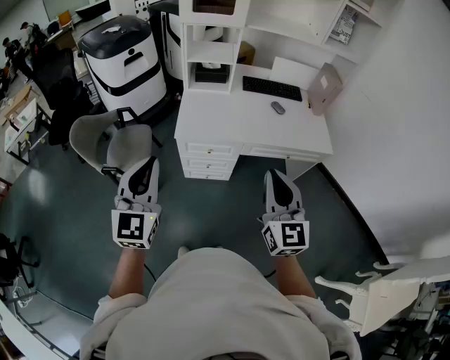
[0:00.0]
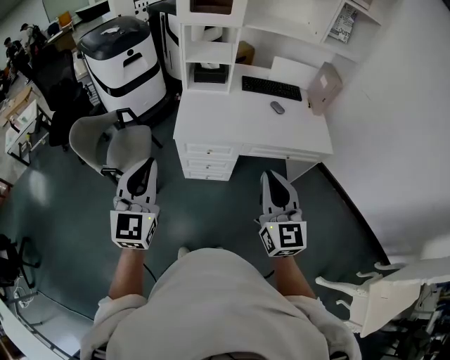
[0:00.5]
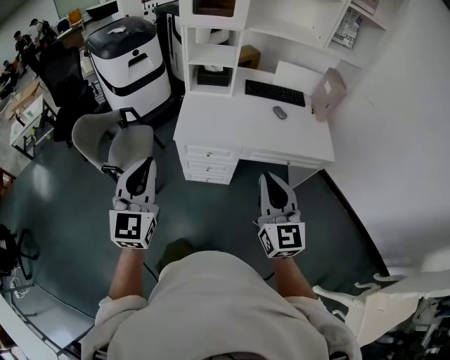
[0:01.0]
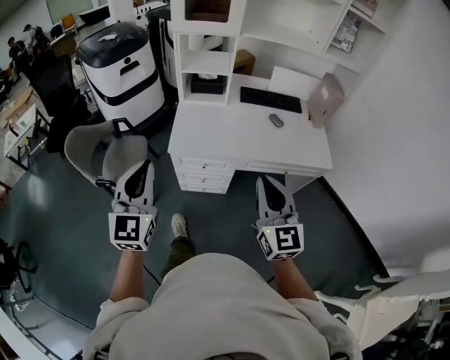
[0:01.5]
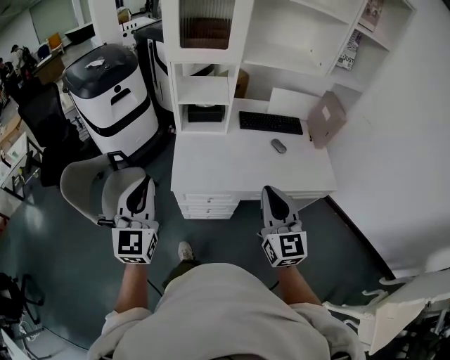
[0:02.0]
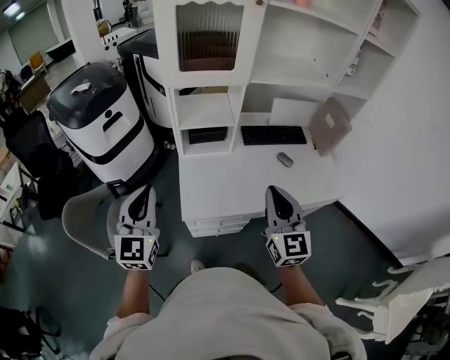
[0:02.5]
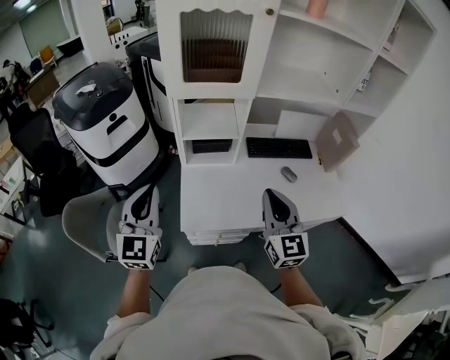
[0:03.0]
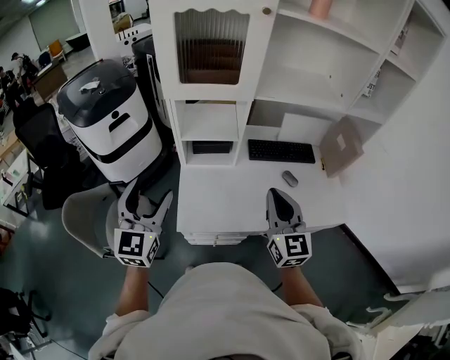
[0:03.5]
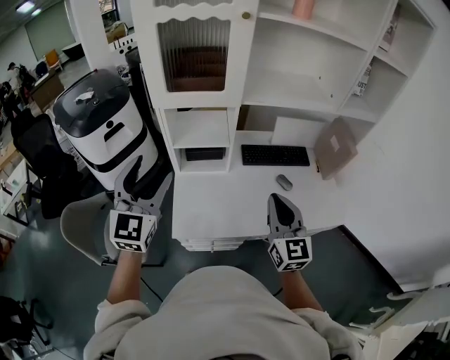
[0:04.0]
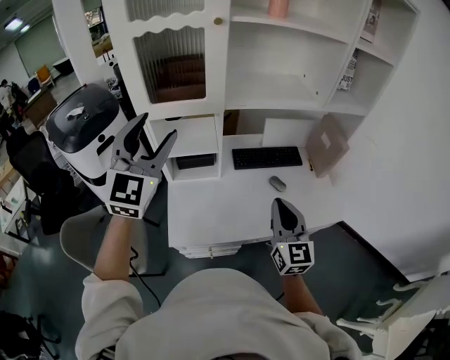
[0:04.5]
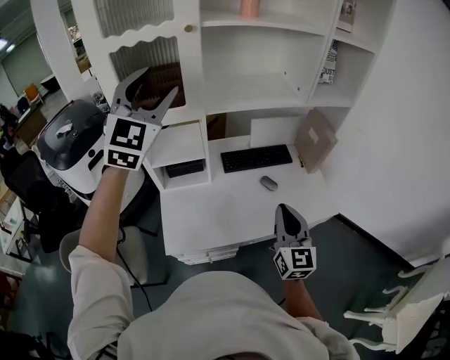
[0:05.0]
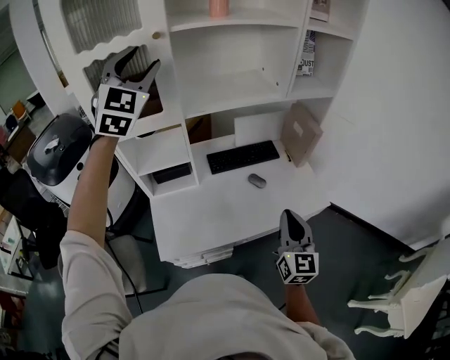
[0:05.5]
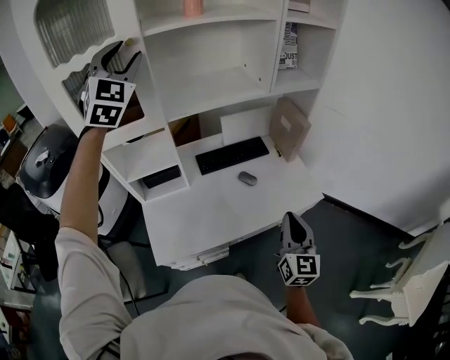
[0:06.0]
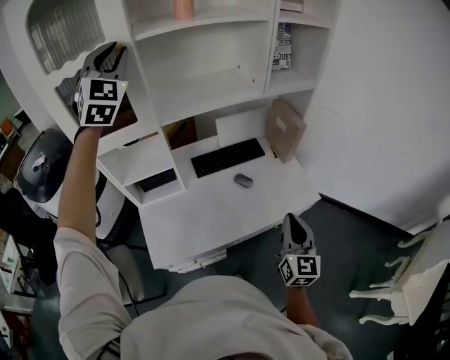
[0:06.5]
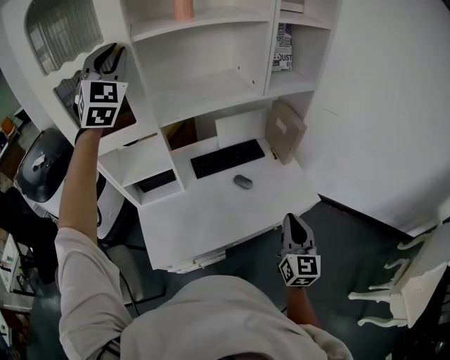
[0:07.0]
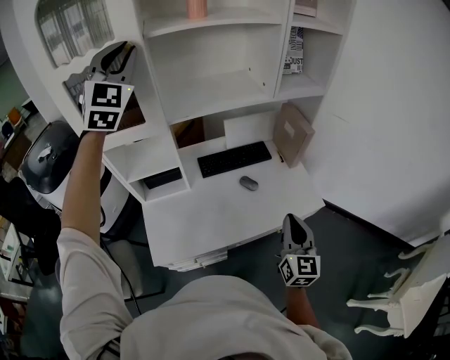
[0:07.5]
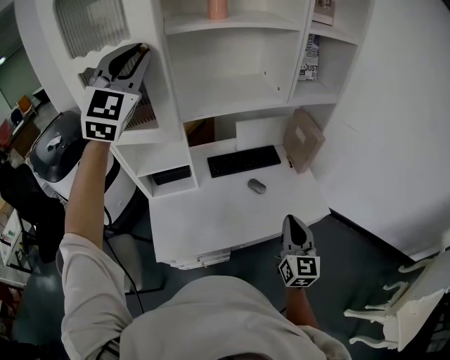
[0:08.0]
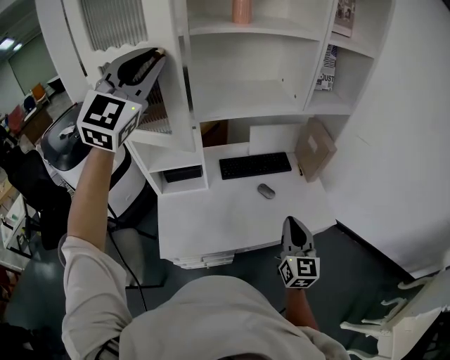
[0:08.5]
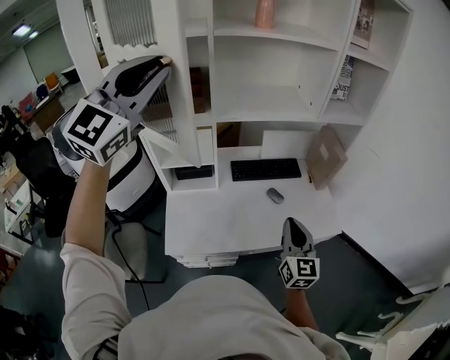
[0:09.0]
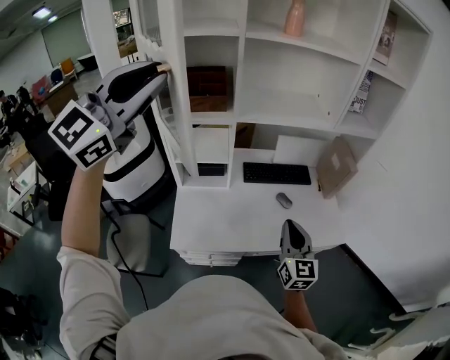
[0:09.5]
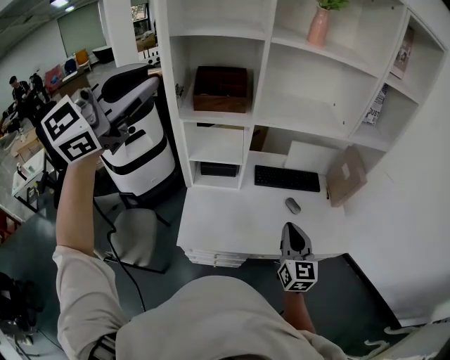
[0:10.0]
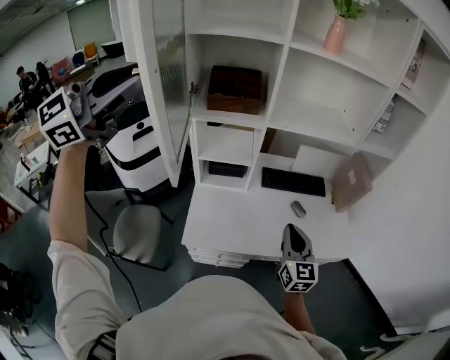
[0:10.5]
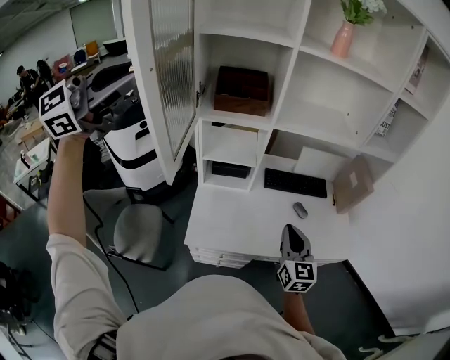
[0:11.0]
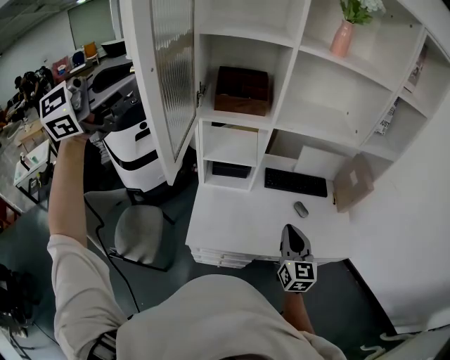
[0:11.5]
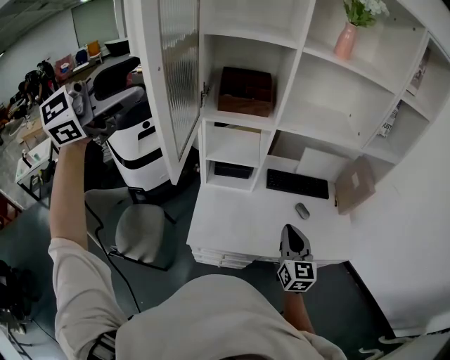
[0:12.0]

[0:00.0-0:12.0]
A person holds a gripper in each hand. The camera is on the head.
0.0 to 2.0 s: Both grippers travel together forward, some 20 cm.
2.0 to 4.0 s: Both grippers move forward, some 20 cm. The left gripper opens its fingers.
4.0 to 6.0 s: The left gripper shifts approximately 40 cm forward, upward and to the right, swivels roughly 30 degrees, and closes its fingers, while the right gripper heads to the right, covering some 20 cm, and turns by approximately 30 degrees.
6.0 to 8.0 s: The left gripper goes about 5 cm backward, and closes.
8.0 to 10.0 s: The left gripper travels backward and to the left by roughly 25 cm, and changes its angle by some 30 degrees, while the right gripper shifts approximately 15 cm to the left.
10.0 to 12.0 s: The right gripper heads to the left, covering some 5 cm. The left gripper shifts some 10 cm to the left and backward, and opens up.

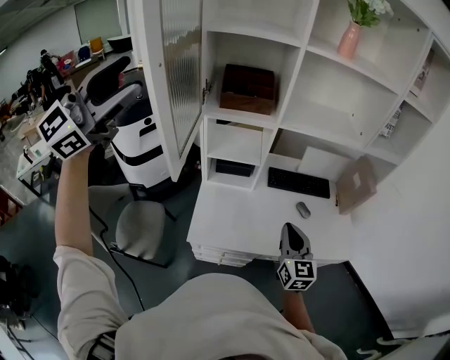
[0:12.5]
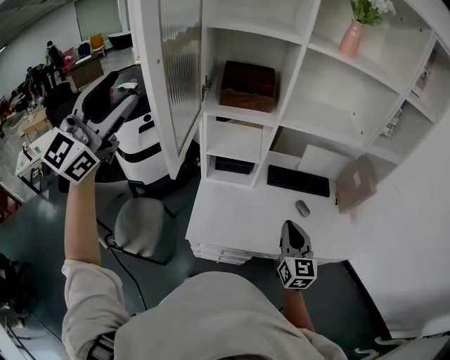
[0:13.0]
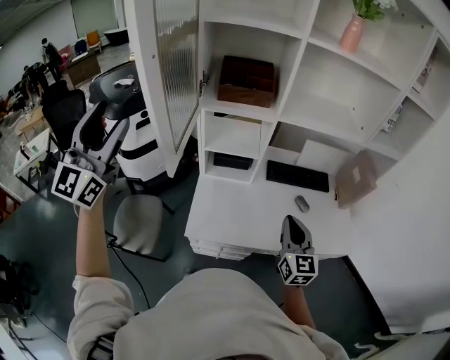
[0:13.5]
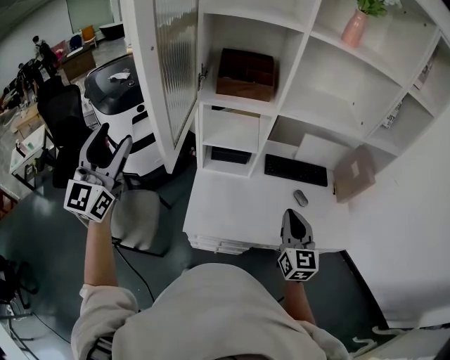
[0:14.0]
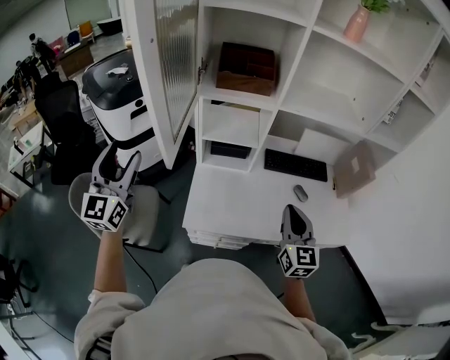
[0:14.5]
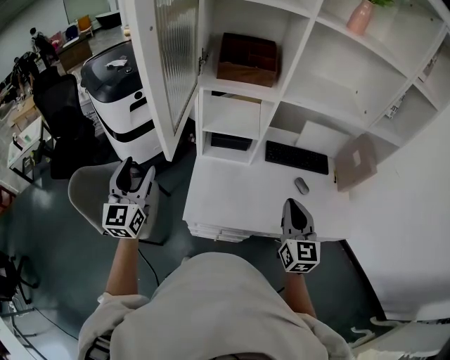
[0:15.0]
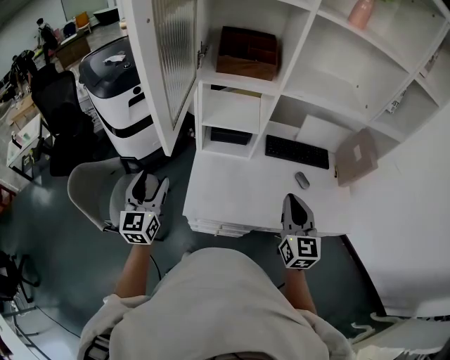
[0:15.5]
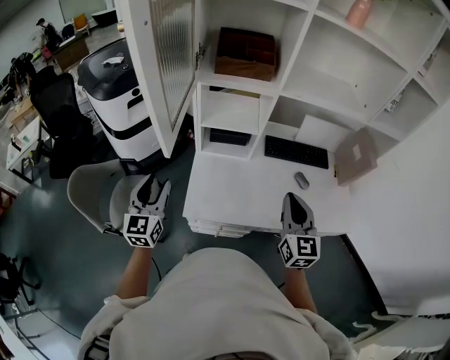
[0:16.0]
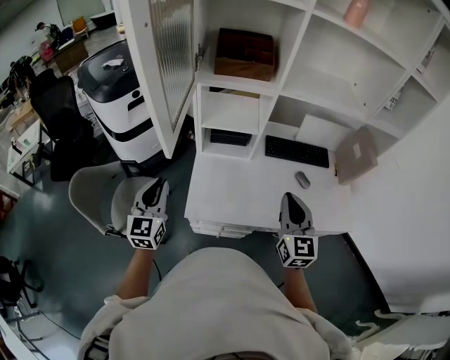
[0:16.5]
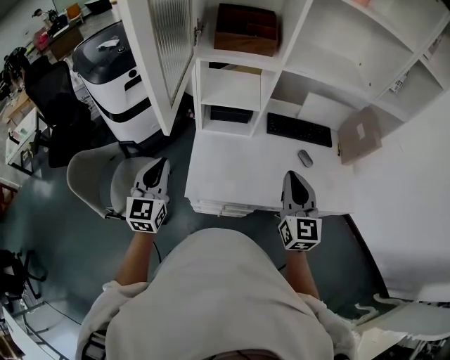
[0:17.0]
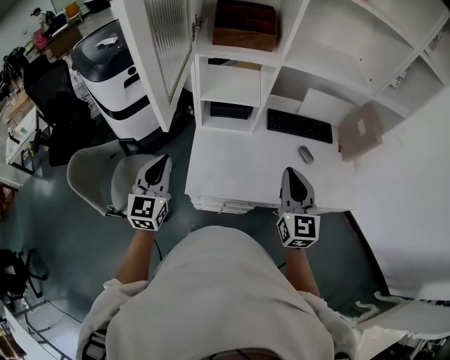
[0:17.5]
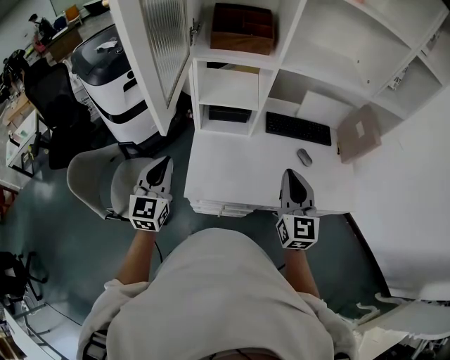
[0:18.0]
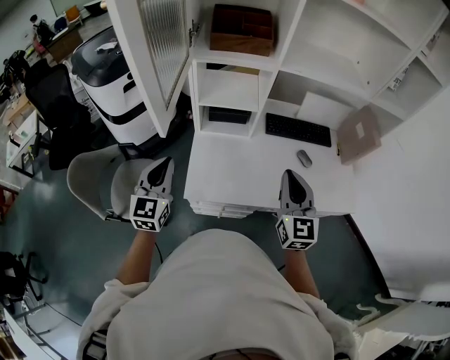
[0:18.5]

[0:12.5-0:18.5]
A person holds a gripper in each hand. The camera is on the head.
12.5 to 14.5 s: The left gripper shifts approximately 25 cm downward, and changes its angle by about 40 degrees.
14.5 to 16.5 s: The left gripper heads downward and to the right, covering roughly 20 cm, and closes.
16.5 to 18.5 s: The grippers stay close to where they were, moving slightly.

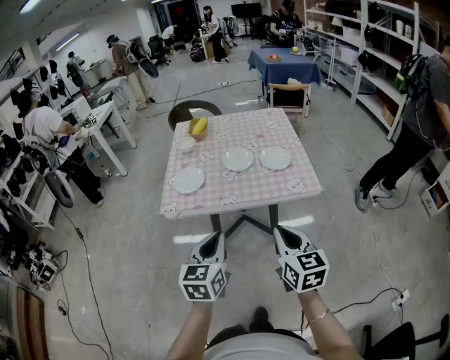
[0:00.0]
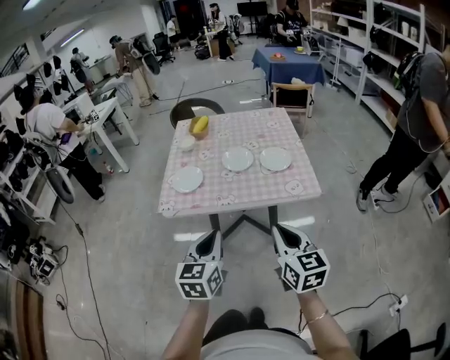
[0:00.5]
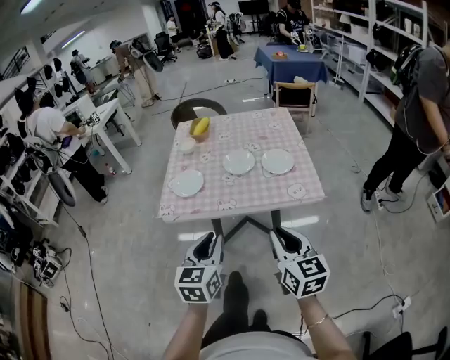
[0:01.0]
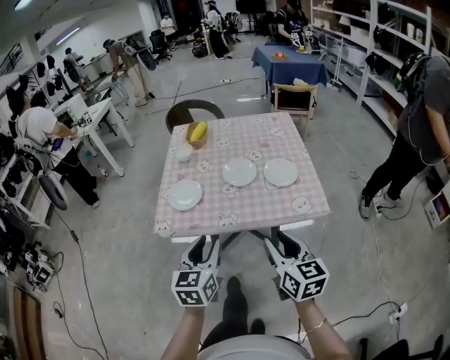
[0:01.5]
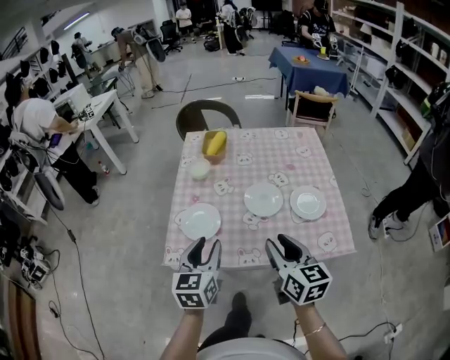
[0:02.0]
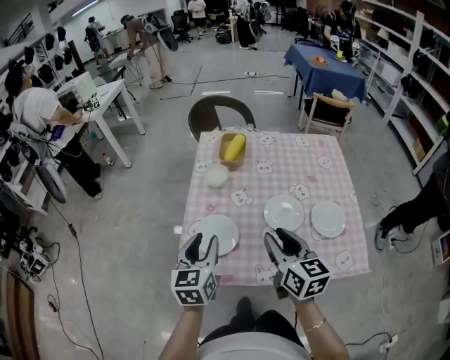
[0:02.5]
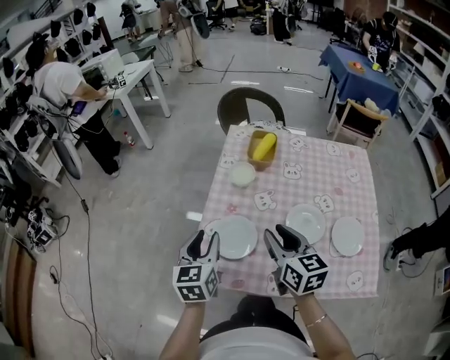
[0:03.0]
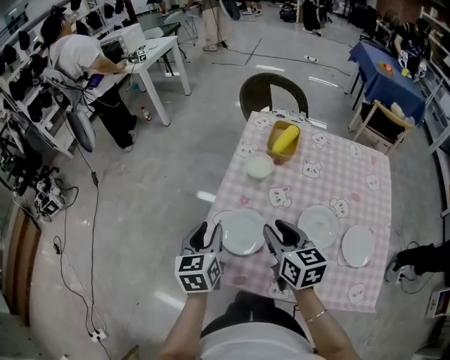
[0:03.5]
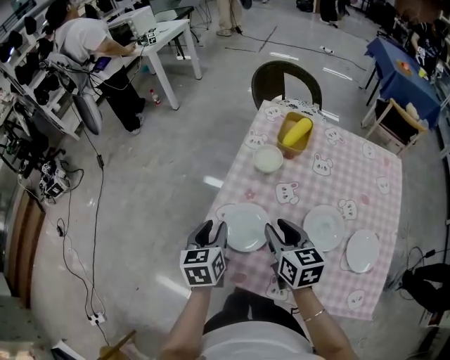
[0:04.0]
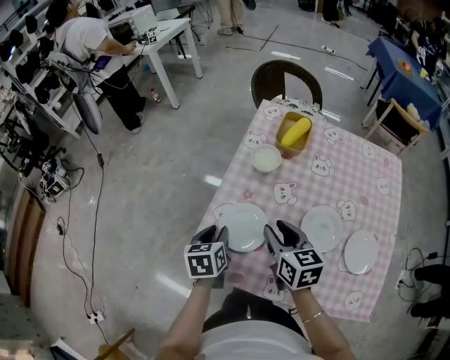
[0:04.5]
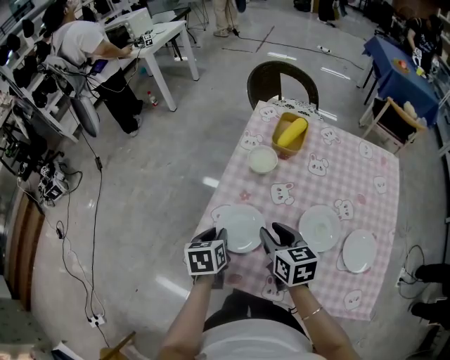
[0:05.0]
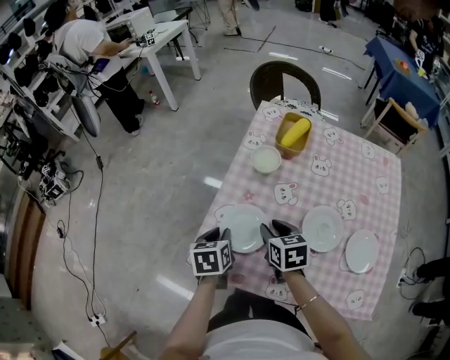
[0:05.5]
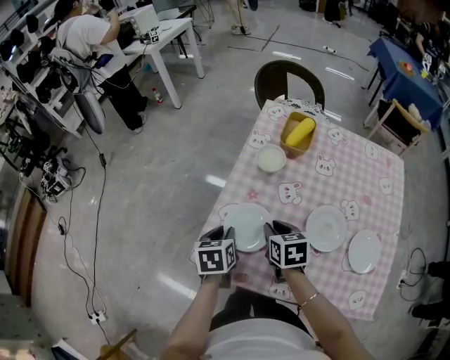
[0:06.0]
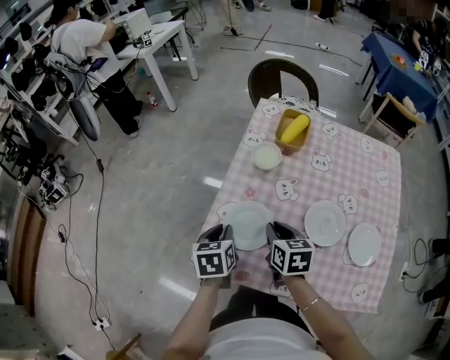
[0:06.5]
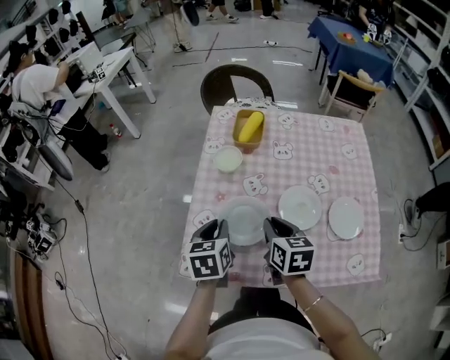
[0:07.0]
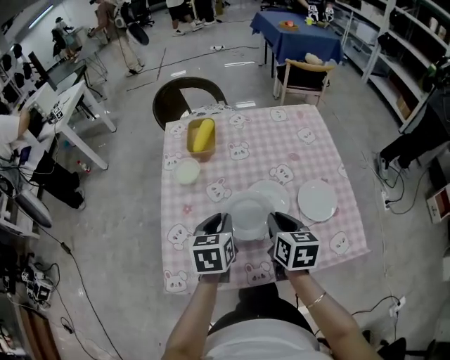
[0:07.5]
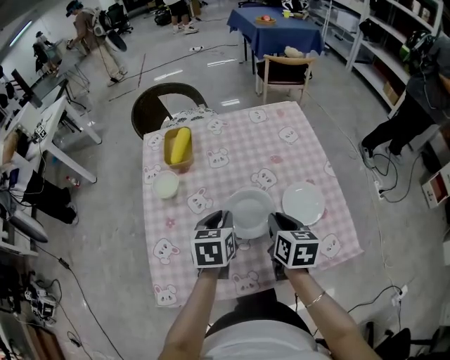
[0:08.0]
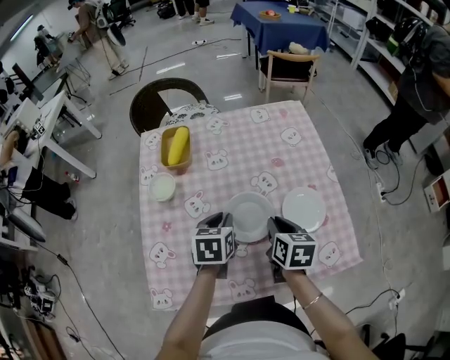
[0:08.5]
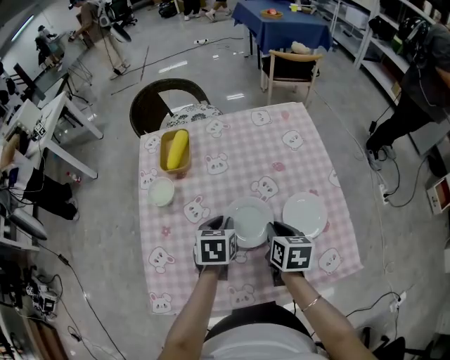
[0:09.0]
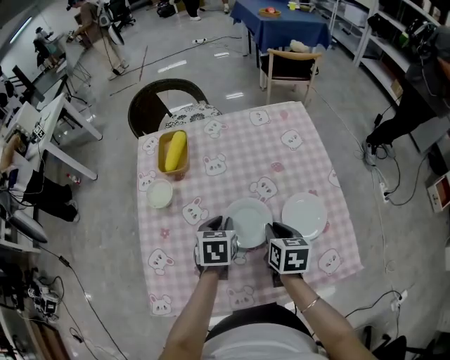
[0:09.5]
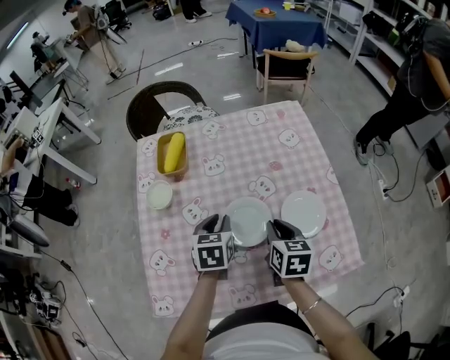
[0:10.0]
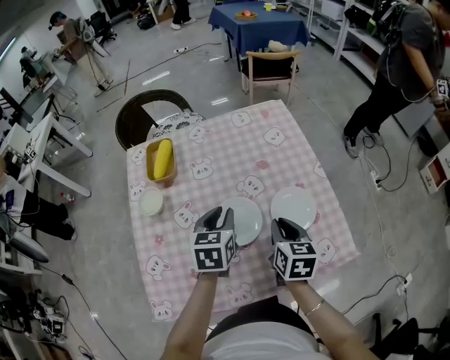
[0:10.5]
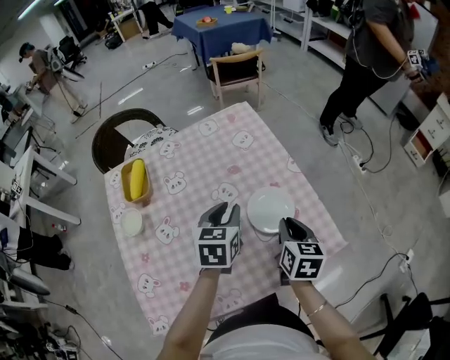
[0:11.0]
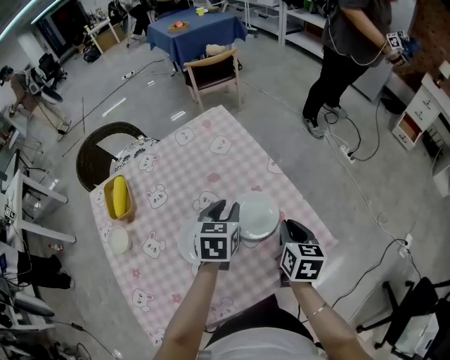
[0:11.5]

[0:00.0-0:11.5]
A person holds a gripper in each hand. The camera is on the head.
0.0 to 2.0 s: The two grippers go about 30 cm forward. The right gripper opens its fingers; the left gripper opens its fingers.
2.0 to 4.0 s: The right gripper shifts roughly 30 cm forward and to the left, and swivels about 30 degrees. The left gripper moves forward, to the left and downward, roughly 25 cm, and changes its angle by some 30 degrees.
4.0 to 6.0 s: Both grippers move downward, approximately 5 cm.
6.0 to 7.5 s: The right gripper shifts by some 20 cm, and turns by approximately 40 degrees. Meanwhile the left gripper changes place by about 20 cm, and swivels about 30 degrees.
7.5 to 9.5 s: The left gripper moves forward, downward and to the right, roughly 15 cm, while the right gripper goes approximately 15 cm to the right, downward and forward.
9.5 to 11.5 s: The right gripper shifts by some 20 cm, and swivels roughly 30 degrees, while the left gripper ends up about 20 cm from where it was, and swivels approximately 30 degrees.
